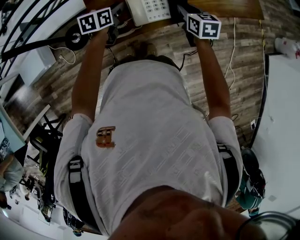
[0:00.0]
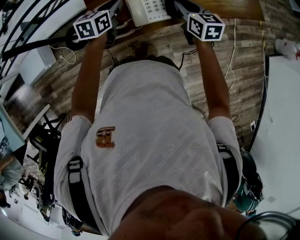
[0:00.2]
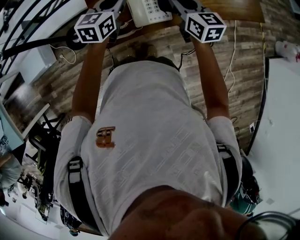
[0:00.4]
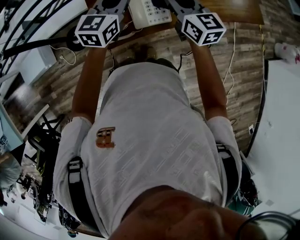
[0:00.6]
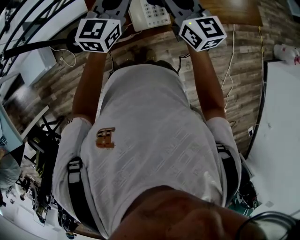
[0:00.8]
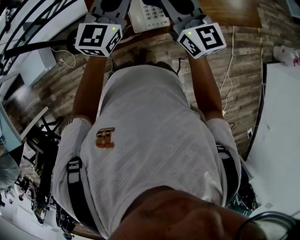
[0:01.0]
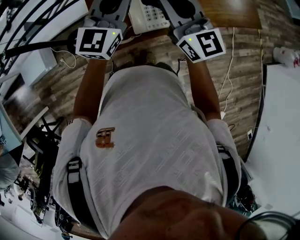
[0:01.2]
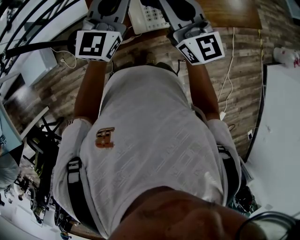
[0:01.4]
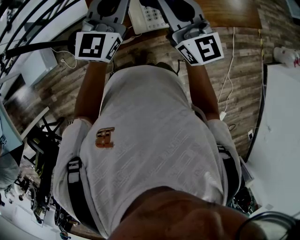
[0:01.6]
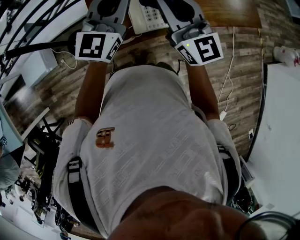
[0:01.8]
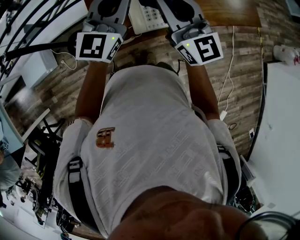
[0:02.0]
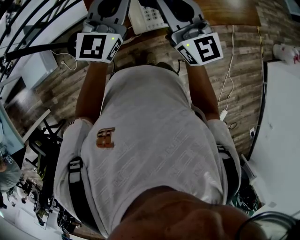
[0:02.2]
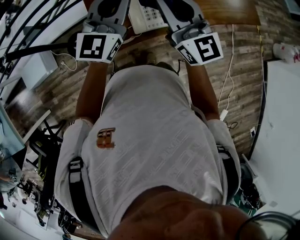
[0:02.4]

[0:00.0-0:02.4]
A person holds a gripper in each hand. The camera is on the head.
0:00.0 to 0:01.2: The right gripper is displaced upward and to the left by approximately 25 cm, and tips its fingers upward by some 50 degrees; the left gripper travels upward by about 25 cm, and tips its fingers upward by some 40 degrees.
0:01.2 to 0:02.4: The grippers move only a little.

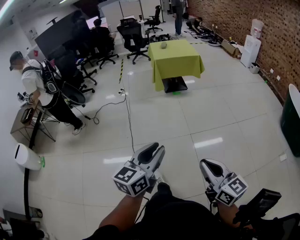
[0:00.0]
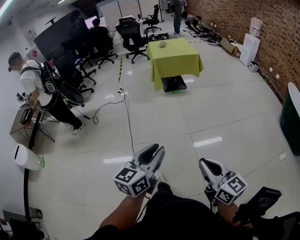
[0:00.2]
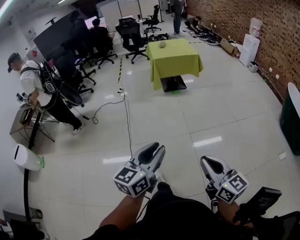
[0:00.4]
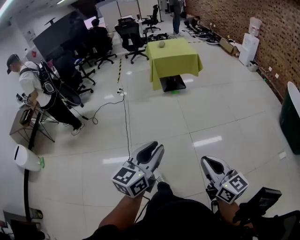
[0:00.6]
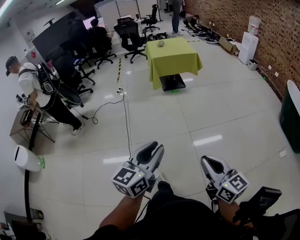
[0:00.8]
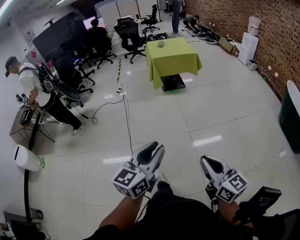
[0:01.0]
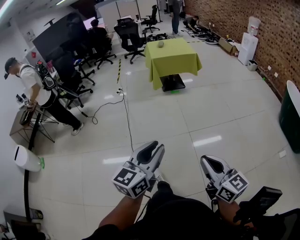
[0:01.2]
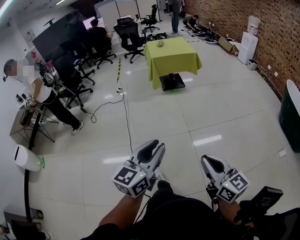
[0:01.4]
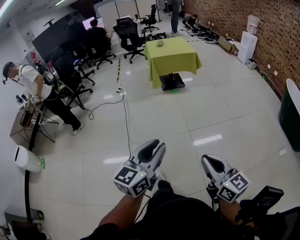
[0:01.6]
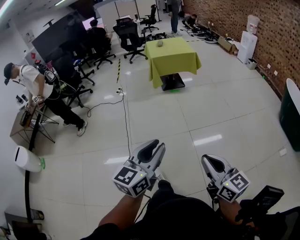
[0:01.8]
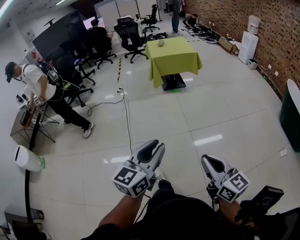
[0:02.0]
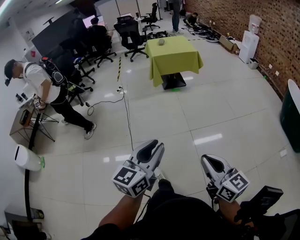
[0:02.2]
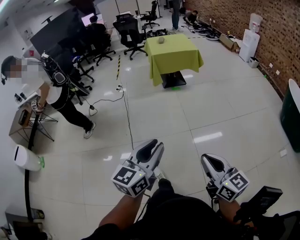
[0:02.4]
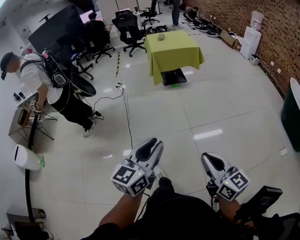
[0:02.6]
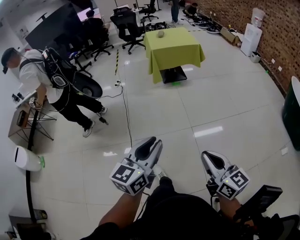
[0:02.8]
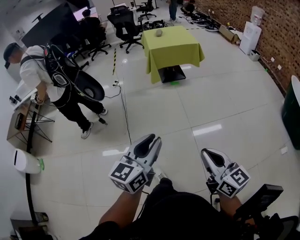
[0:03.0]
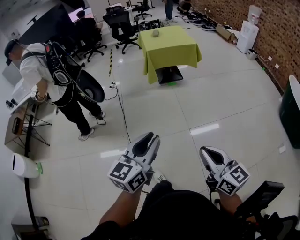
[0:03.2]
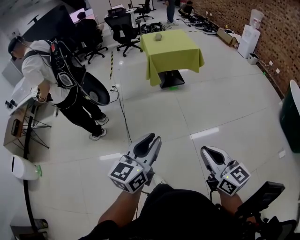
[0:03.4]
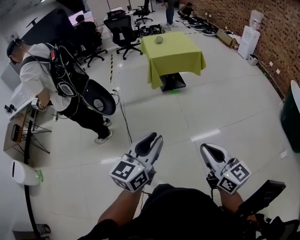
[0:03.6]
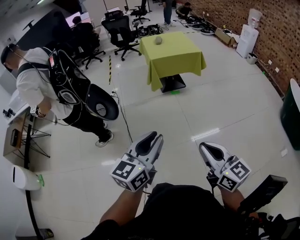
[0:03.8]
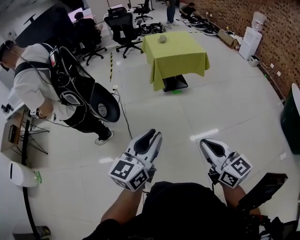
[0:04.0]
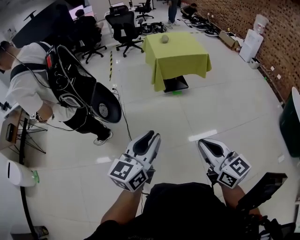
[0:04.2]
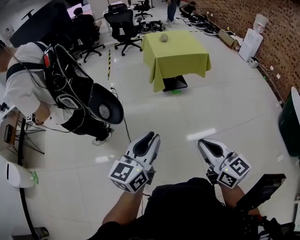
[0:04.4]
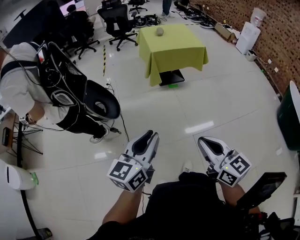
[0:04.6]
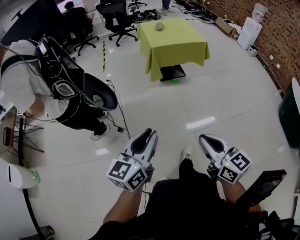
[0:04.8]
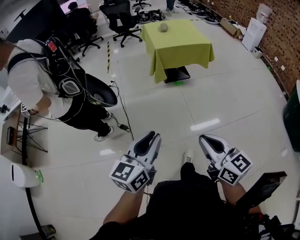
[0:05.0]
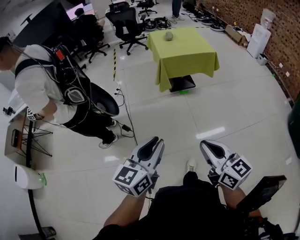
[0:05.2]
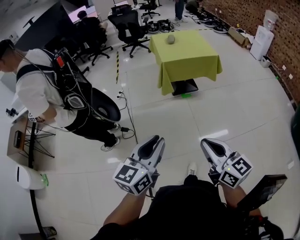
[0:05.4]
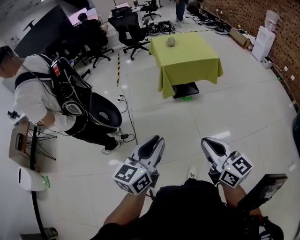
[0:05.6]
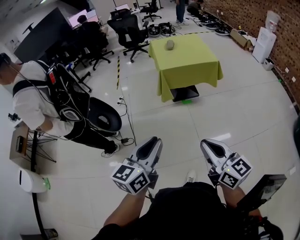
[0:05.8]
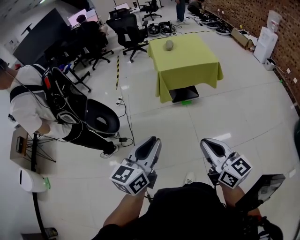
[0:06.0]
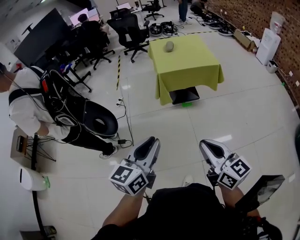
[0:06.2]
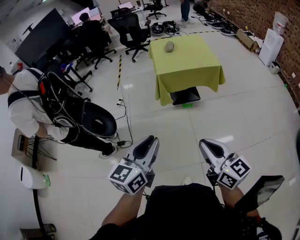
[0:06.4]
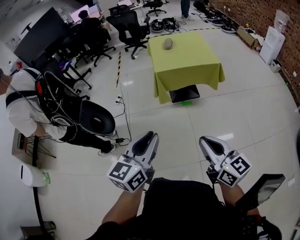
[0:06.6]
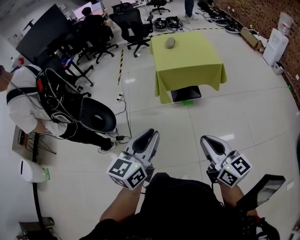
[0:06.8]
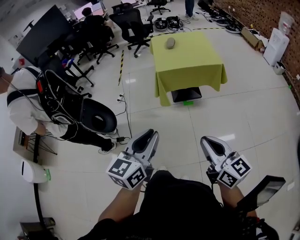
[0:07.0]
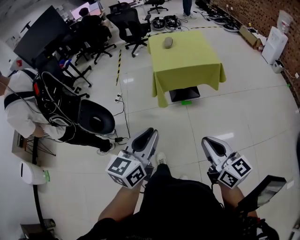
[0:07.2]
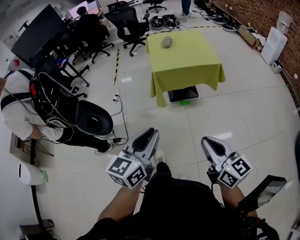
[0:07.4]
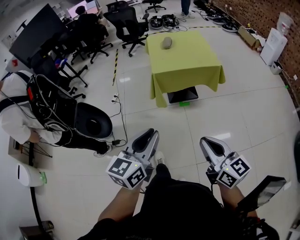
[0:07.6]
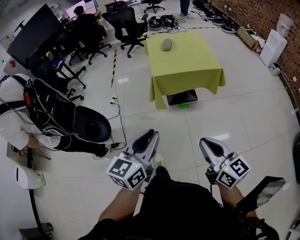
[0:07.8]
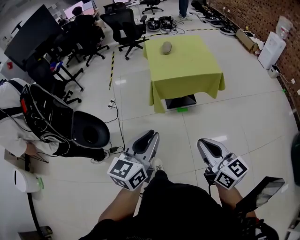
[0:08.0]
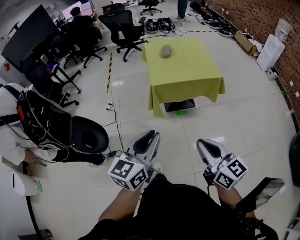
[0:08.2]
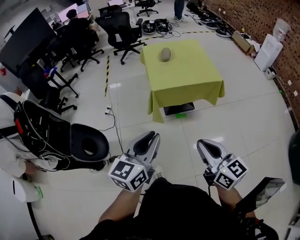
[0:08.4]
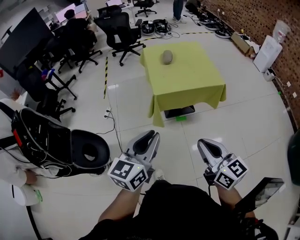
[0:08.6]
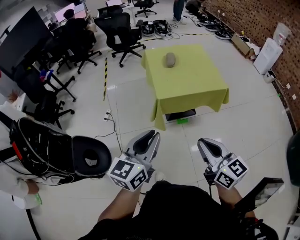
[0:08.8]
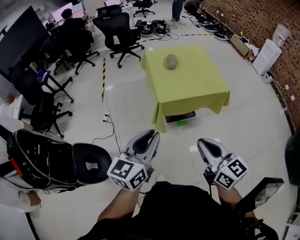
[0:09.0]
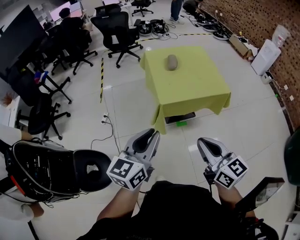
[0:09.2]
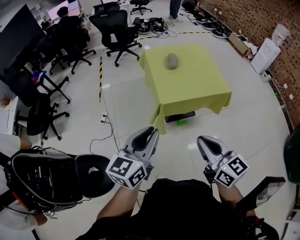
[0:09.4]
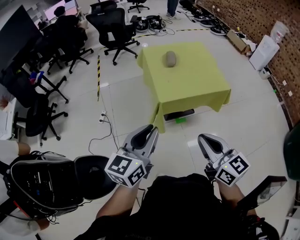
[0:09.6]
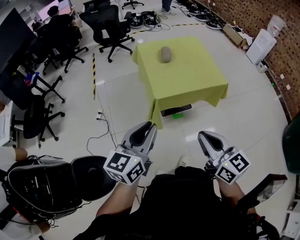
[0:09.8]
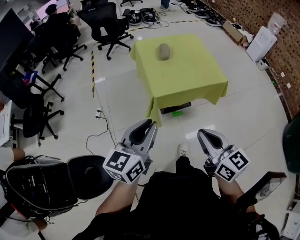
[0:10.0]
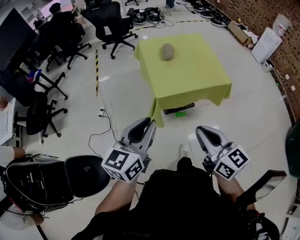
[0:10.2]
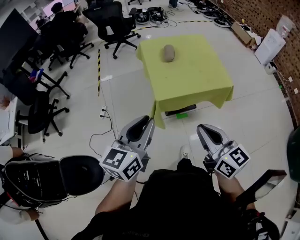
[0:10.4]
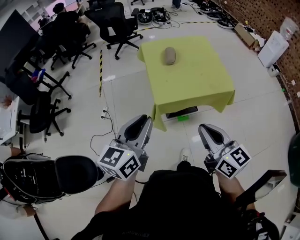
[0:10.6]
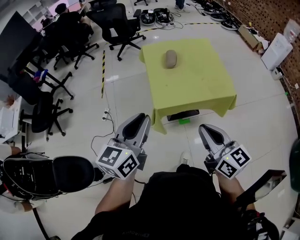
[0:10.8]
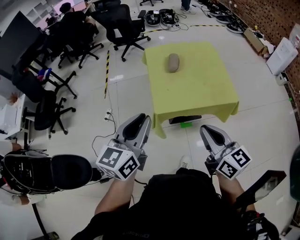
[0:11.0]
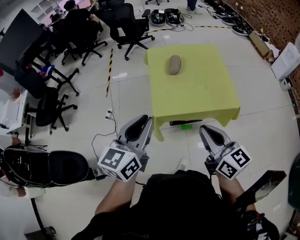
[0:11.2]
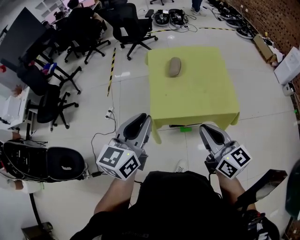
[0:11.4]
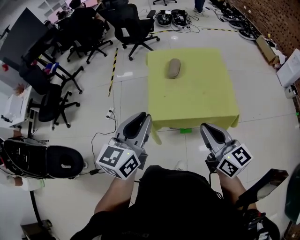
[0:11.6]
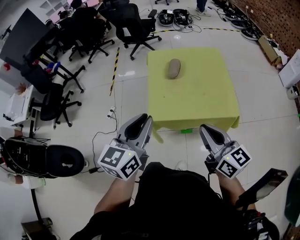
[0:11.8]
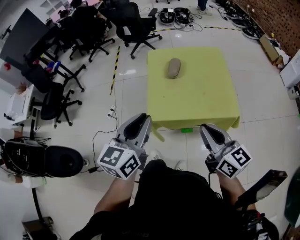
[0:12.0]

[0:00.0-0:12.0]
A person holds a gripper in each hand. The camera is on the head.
0:00.0 to 0:01.6: The grippers move only a little.
0:01.6 to 0:03.0: Both grippers move forward, some 15 cm.
0:03.0 to 0:04.4: Both grippers travel together forward and to the left, approximately 25 cm.
0:04.4 to 0:06.0: The grippers both shift forward and to the right by approximately 20 cm.
0:06.0 to 0:07.6: The two grippers go approximately 15 cm forward and to the right.
0:07.6 to 0:09.0: Both grippers travel together forward and to the left, roughly 25 cm.
0:09.0 to 0:10.4: Both grippers travel together forward, roughly 10 cm.
0:10.4 to 0:12.0: Both grippers travel together forward and to the right, some 20 cm.

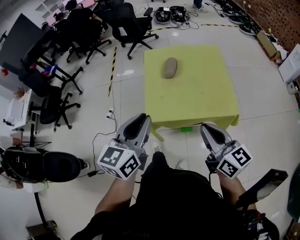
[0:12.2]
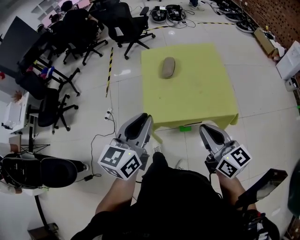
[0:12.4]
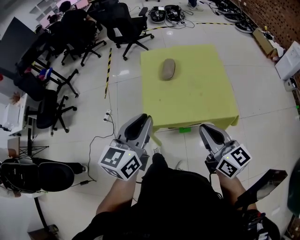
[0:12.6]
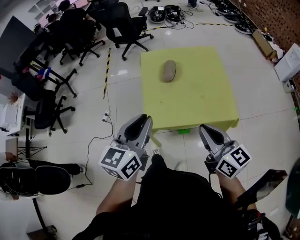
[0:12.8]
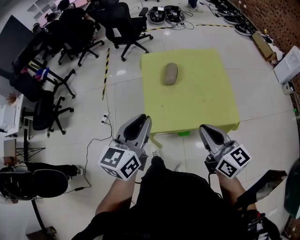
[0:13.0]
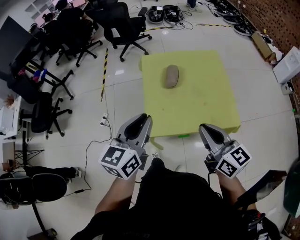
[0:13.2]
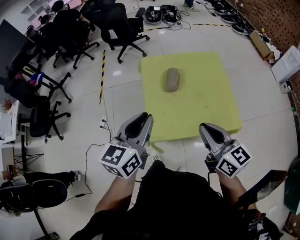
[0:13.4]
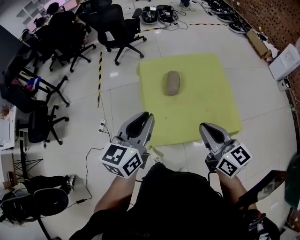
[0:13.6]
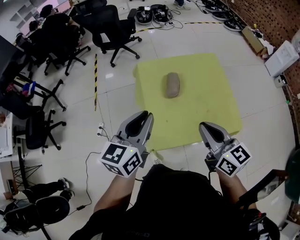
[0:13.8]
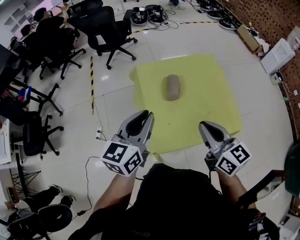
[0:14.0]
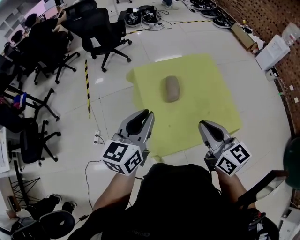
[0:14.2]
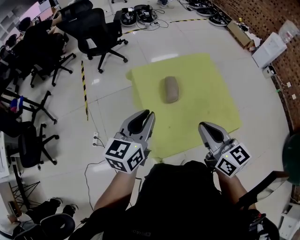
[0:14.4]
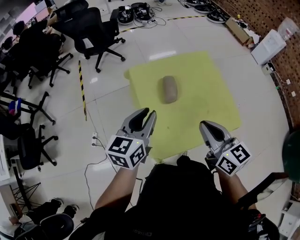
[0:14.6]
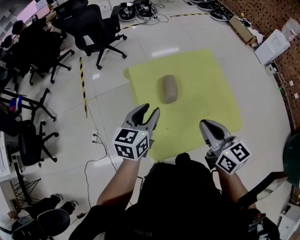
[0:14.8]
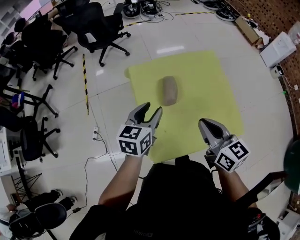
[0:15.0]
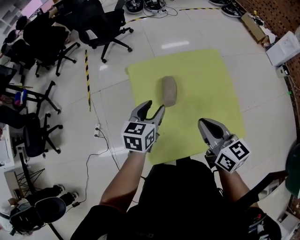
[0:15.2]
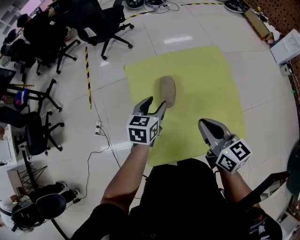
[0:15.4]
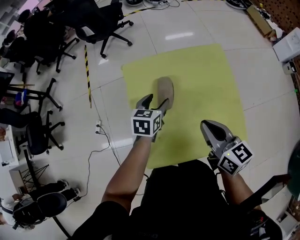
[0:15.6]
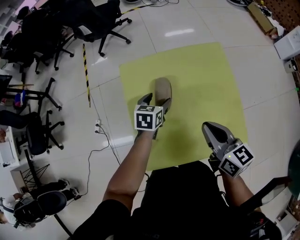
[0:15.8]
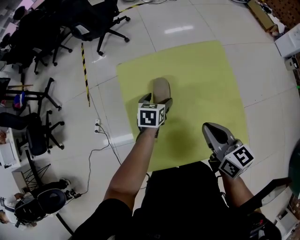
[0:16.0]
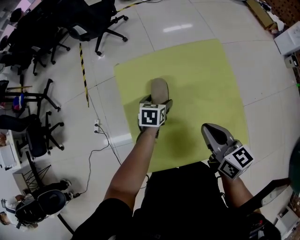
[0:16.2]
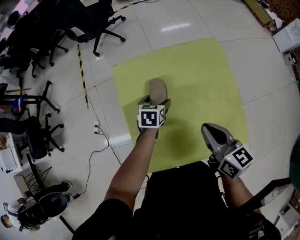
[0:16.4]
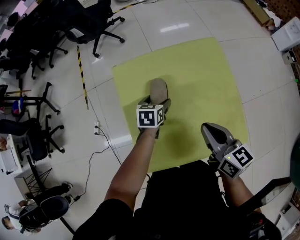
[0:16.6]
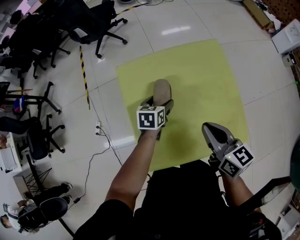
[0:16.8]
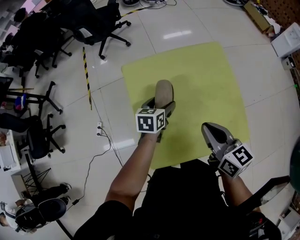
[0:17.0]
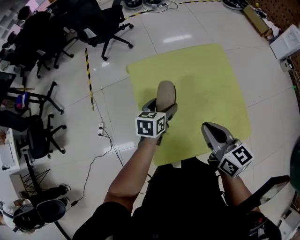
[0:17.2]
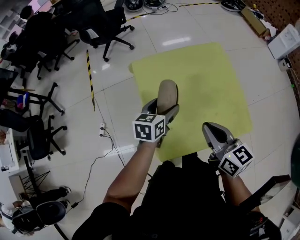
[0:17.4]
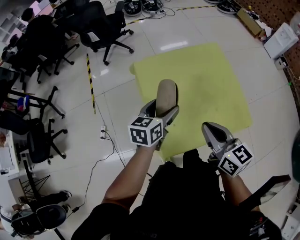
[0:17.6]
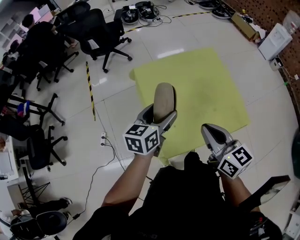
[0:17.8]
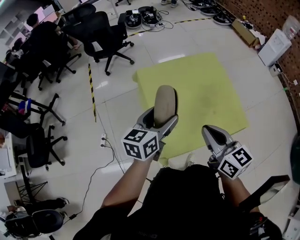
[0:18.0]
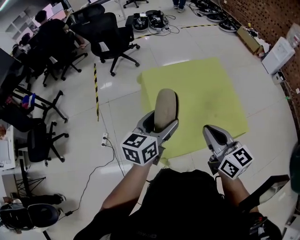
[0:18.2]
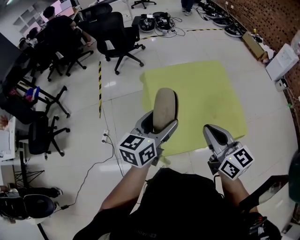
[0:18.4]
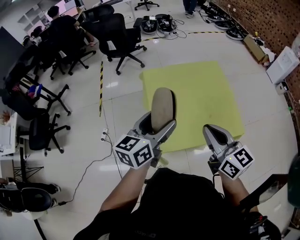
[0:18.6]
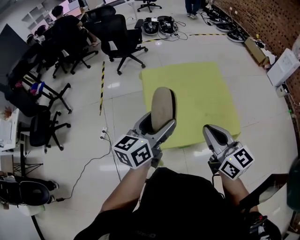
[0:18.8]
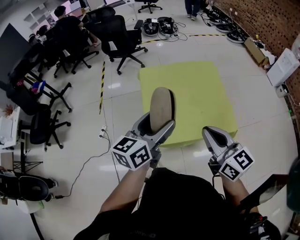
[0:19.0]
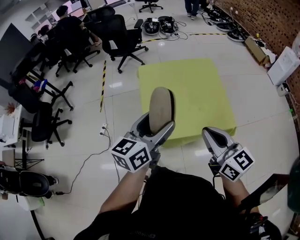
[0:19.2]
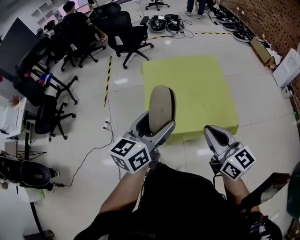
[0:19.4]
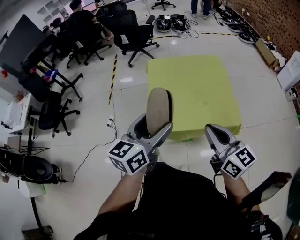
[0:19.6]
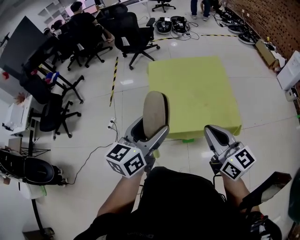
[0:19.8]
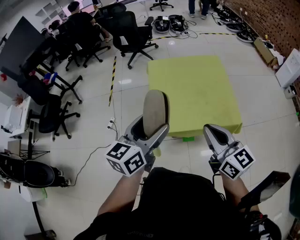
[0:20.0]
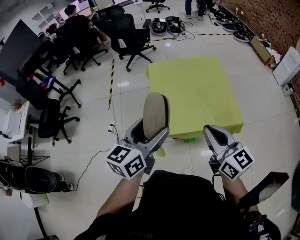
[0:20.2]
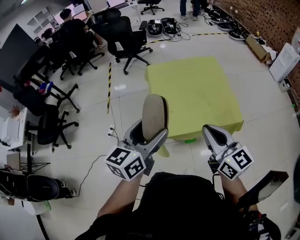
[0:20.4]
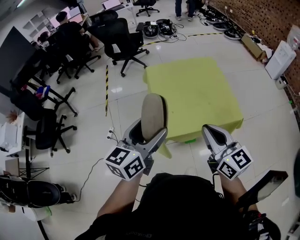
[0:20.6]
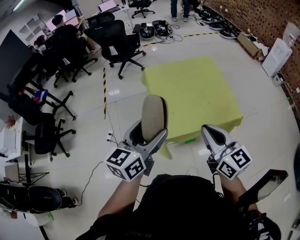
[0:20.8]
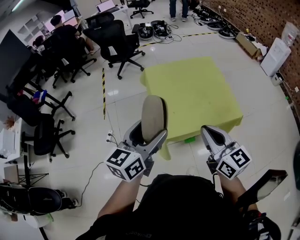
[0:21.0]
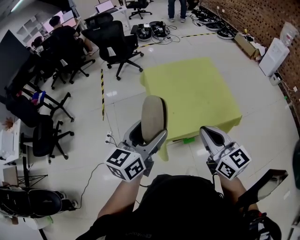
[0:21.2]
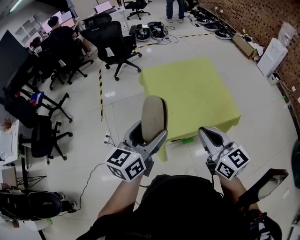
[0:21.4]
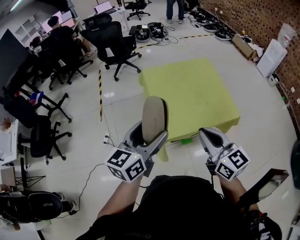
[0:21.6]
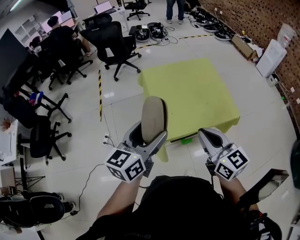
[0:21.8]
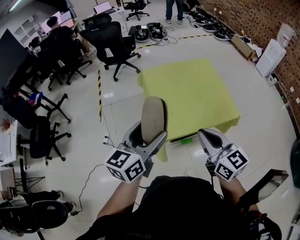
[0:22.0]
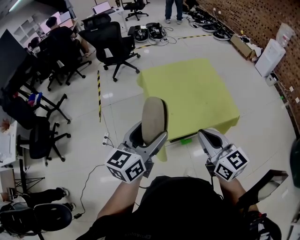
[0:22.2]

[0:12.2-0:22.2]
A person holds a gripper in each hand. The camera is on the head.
0:12.2 to 0:13.6: The right gripper shifts some 15 cm forward and to the left; the left gripper moves forward, approximately 15 cm.
0:13.6 to 0:15.0: The right gripper is displaced forward by about 10 cm; the left gripper shifts some 20 cm forward and downward.
0:15.0 to 0:16.4: The right gripper moves downward, to the right and forward, approximately 15 cm. The left gripper moves downward and forward, roughly 25 cm, turns by about 30 degrees, and opens up.
0:16.4 to 0:18.0: The right gripper heads backward, upward and to the left, covering roughly 20 cm. The left gripper moves upward and backward, approximately 30 cm, and tilts its fingers roughly 40 degrees upward.
0:18.0 to 0:19.4: The left gripper heads backward, upward and to the right, covering some 20 cm, while the right gripper is displaced backward and to the right by roughly 15 cm.
0:19.4 to 0:20.8: Both grippers move to the left, some 10 cm.
0:20.8 to 0:22.2: The grippers make only small movements.
